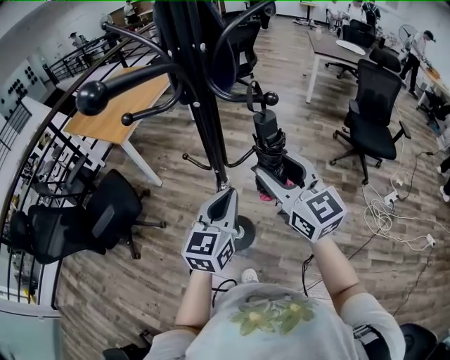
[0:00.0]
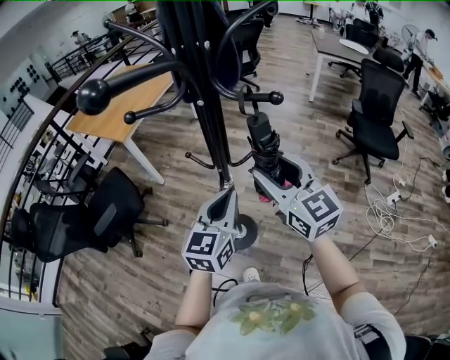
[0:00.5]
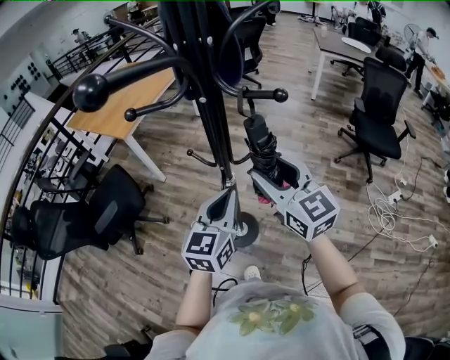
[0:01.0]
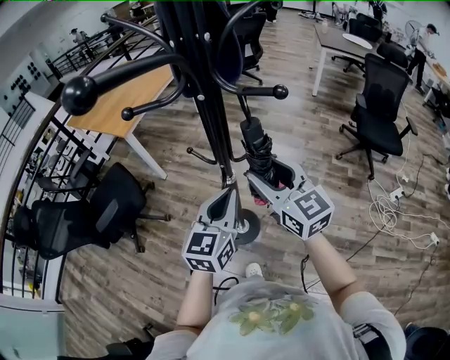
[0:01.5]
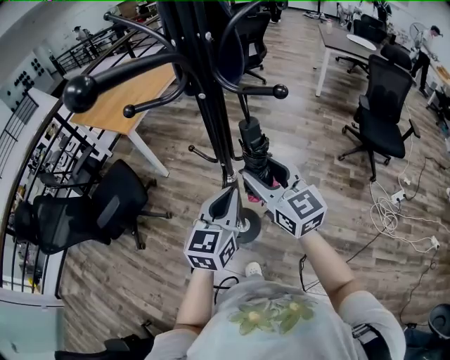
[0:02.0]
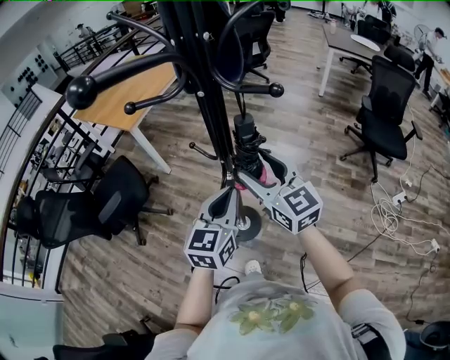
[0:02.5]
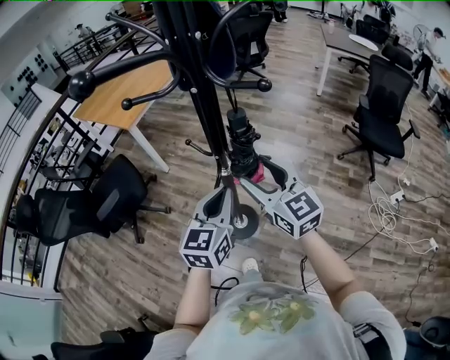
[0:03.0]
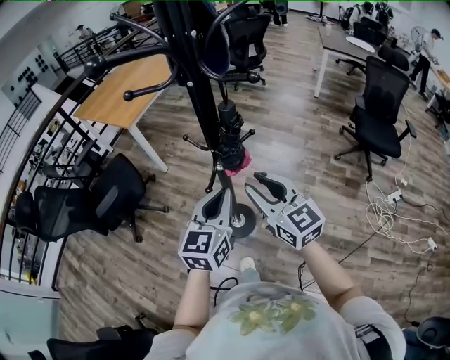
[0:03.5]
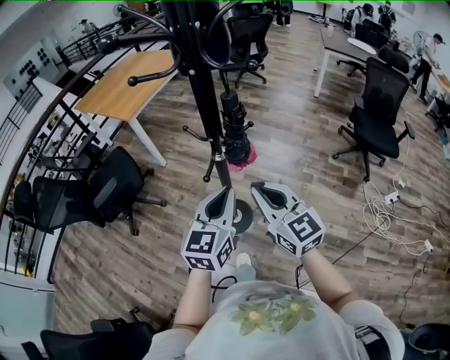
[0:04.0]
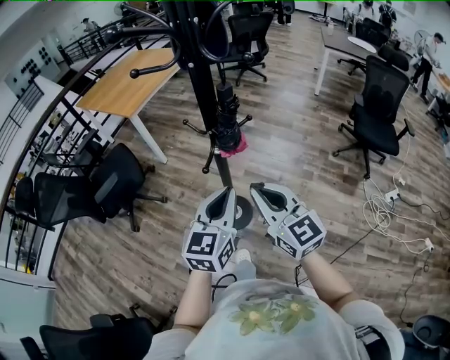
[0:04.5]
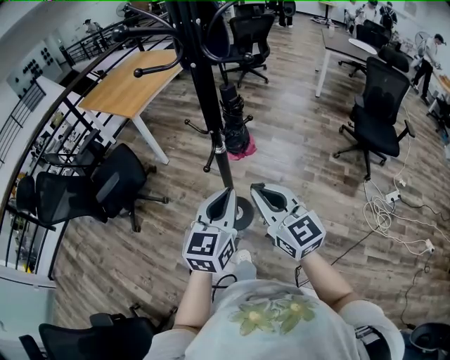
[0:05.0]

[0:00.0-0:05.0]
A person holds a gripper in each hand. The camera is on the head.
0:00.0 to 0:02.5: The right gripper is displaced downward by some 5 cm.
0:02.5 to 0:05.0: Both grippers move backward, some 15 cm. The right gripper closes its fingers.

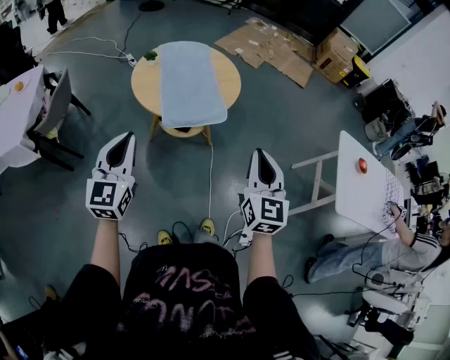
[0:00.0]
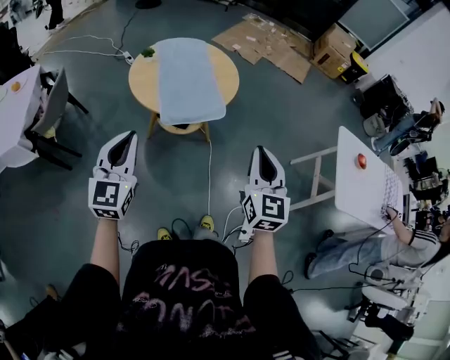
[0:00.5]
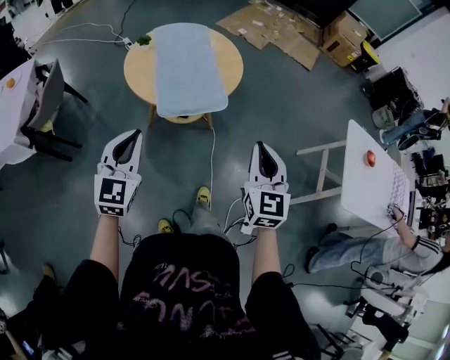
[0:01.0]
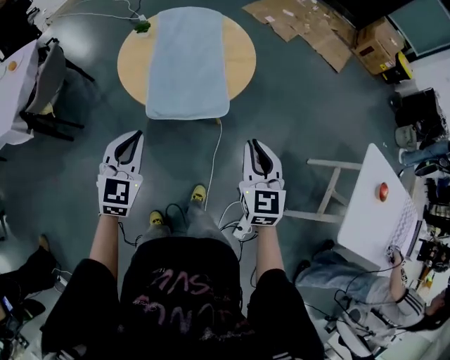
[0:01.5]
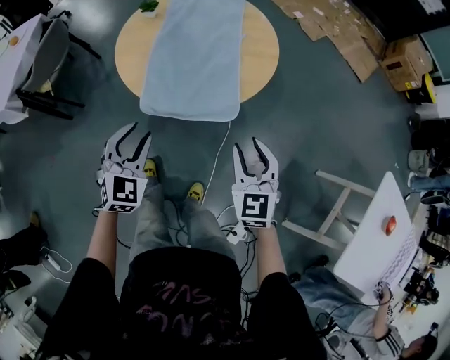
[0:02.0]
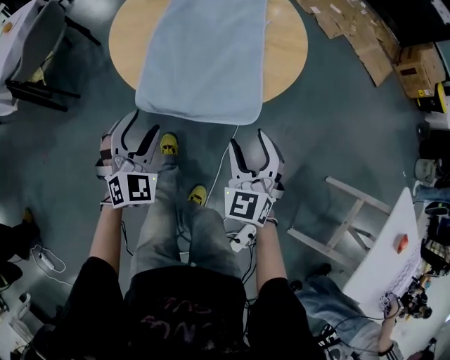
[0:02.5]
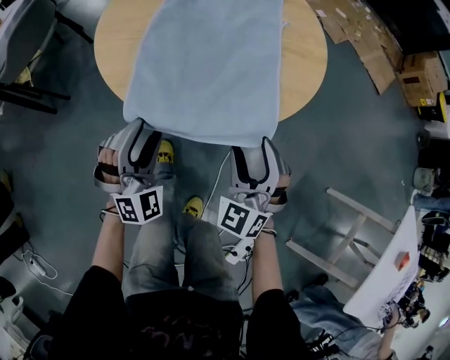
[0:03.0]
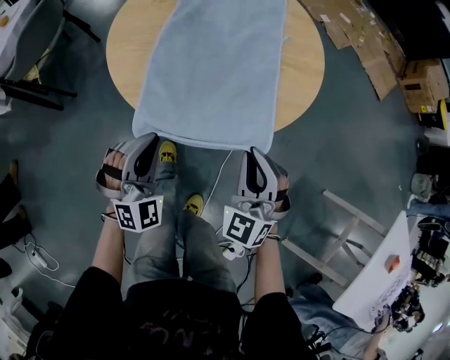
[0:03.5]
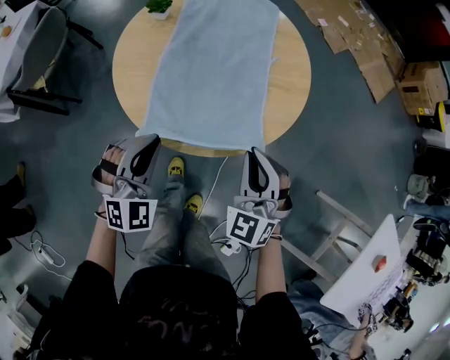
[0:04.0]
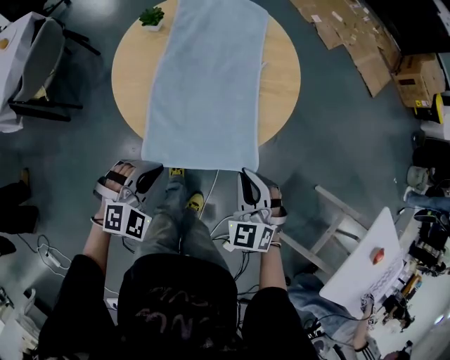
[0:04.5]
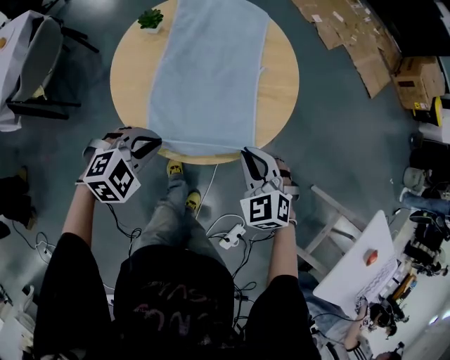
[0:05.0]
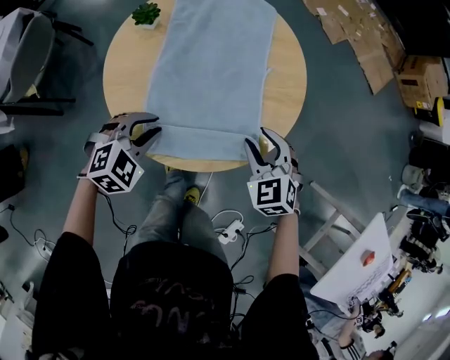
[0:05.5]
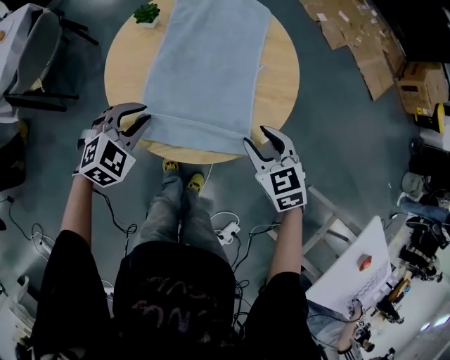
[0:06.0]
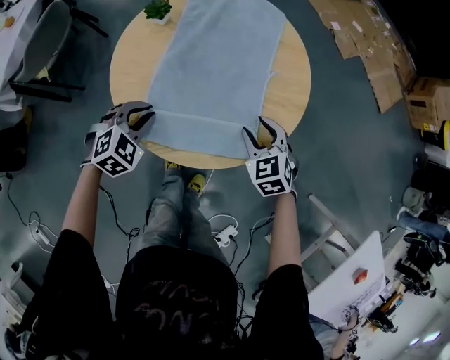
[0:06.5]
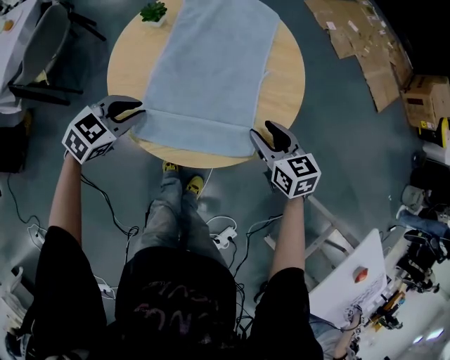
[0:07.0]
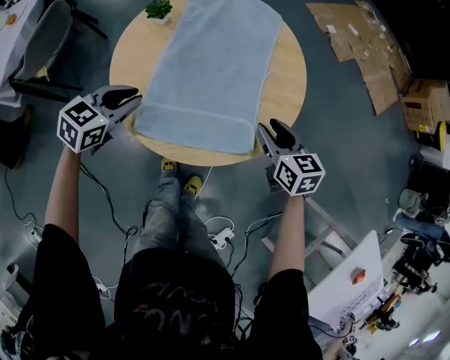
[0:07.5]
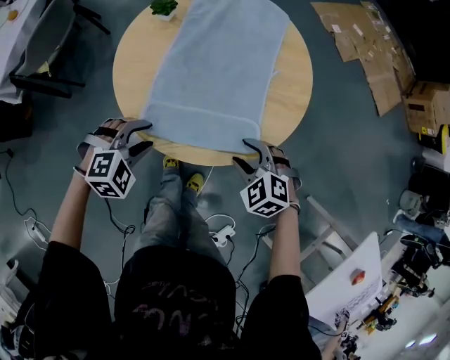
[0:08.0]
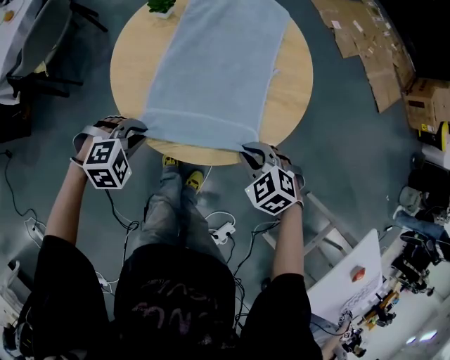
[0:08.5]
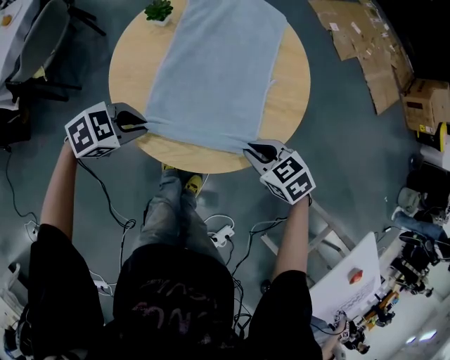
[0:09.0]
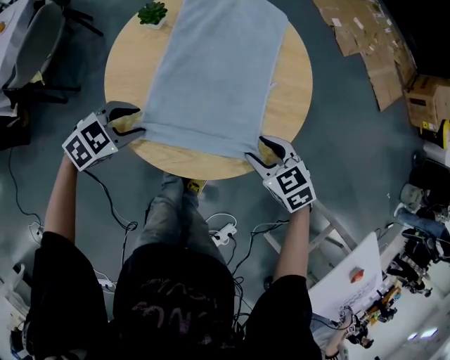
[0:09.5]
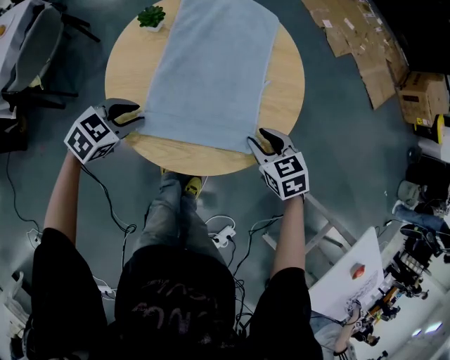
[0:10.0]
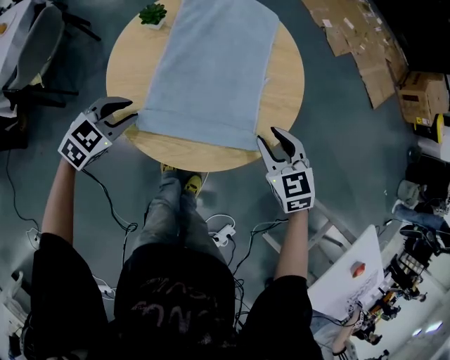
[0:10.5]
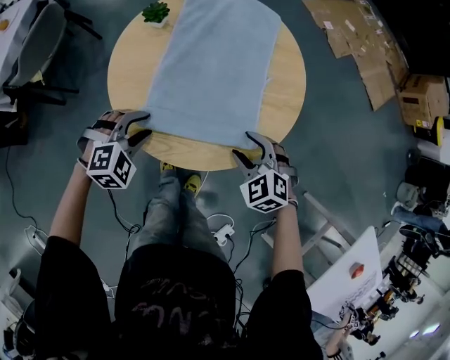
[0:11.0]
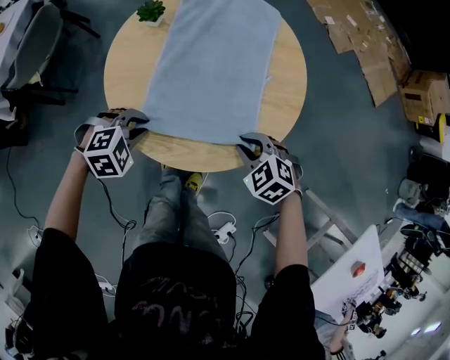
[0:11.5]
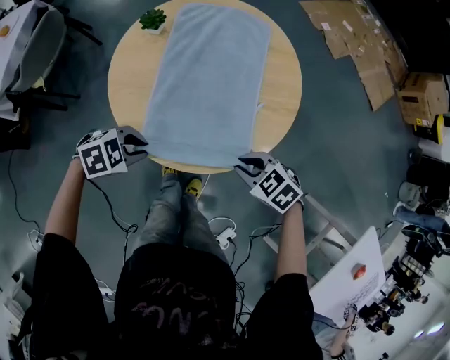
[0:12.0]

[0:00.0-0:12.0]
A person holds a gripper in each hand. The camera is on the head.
0:00.0 to 0:02.0: The left gripper is displaced downward, forward and to the right by some 30 cm, rotates some 40 degrees, and opens; the right gripper shifts roughly 30 cm downward and forward, swivels roughly 30 degrees, and opens up.
0:02.0 to 0:04.0: The right gripper travels forward and to the left by roughly 15 cm, goes downward and returns, approximately 15 cm each way, swivels about 30 degrees, and closes; the left gripper travels forward by approximately 10 cm, moves about 15 cm downward and comes back, changes its angle by roughly 20 degrees, and closes its fingers.
0:04.0 to 0:06.0: Both grippers move forward, approximately 10 cm. The right gripper turns by about 40 degrees, and opens; the left gripper changes its angle by approximately 30 degrees.
0:06.0 to 0:08.0: The left gripper travels backward by about 5 cm, while the right gripper travels downward and backward by about 10 cm, and turns by about 30 degrees.
0:08.0 to 0:10.0: The left gripper ends up roughly 10 cm from where it was, and changes its angle by approximately 40 degrees; the right gripper changes place by about 10 cm, turns by approximately 40 degrees, and closes, then reopens.
0:10.0 to 0:12.0: The left gripper ends up approximately 10 cm from where it was, and changes its angle by approximately 30 degrees. The right gripper goes upward and returns, approximately 5 cm each way, and rotates about 30 degrees.

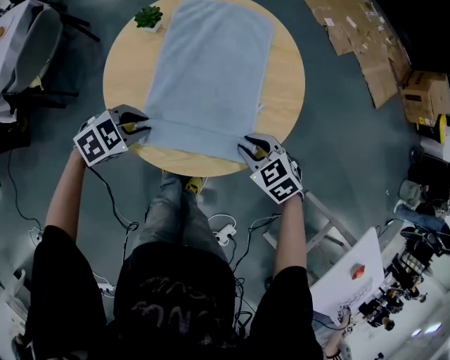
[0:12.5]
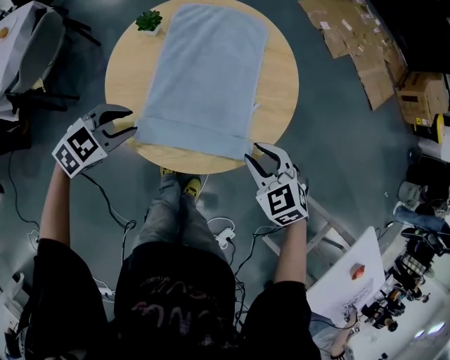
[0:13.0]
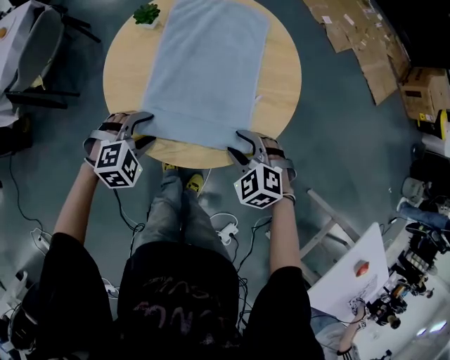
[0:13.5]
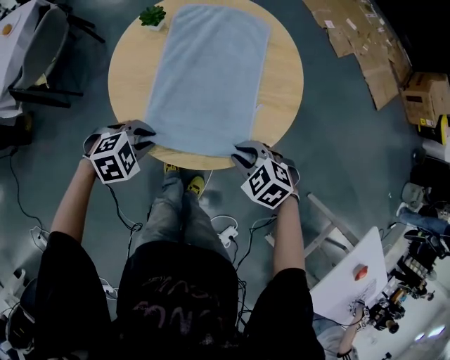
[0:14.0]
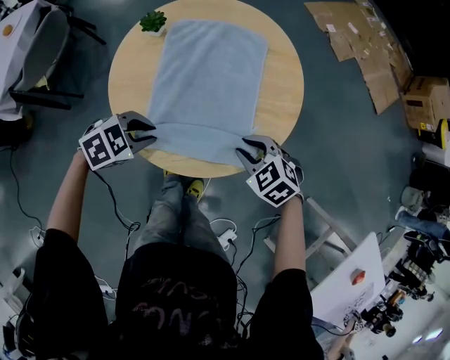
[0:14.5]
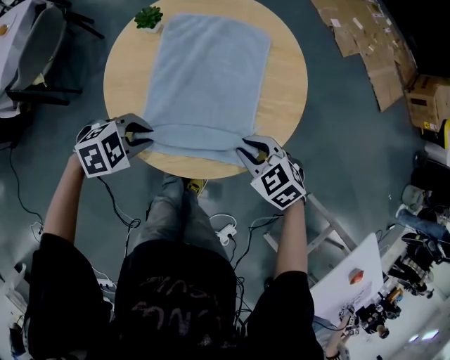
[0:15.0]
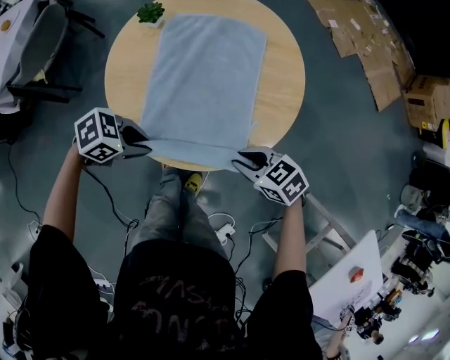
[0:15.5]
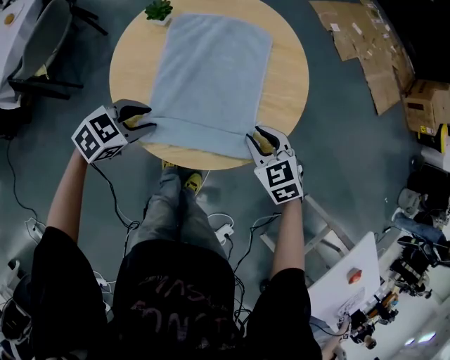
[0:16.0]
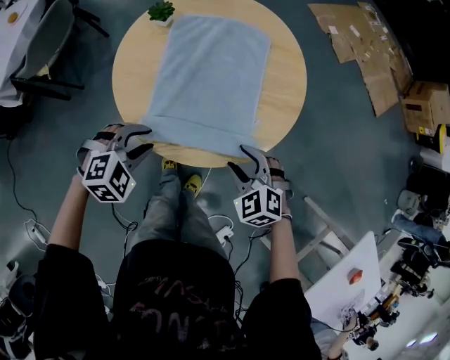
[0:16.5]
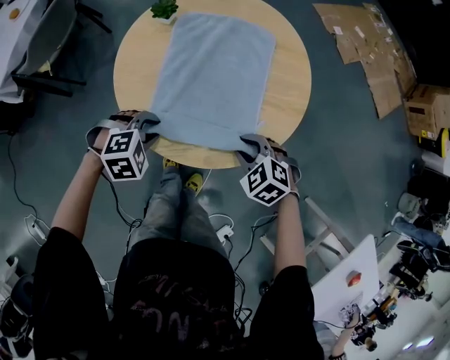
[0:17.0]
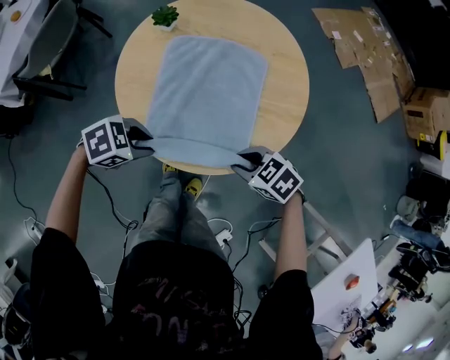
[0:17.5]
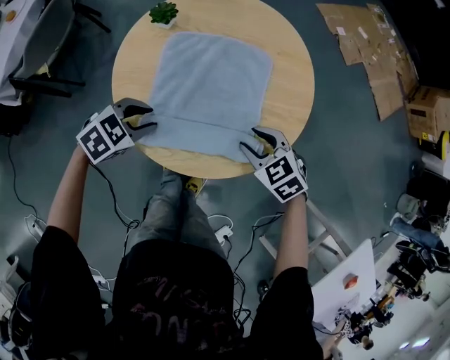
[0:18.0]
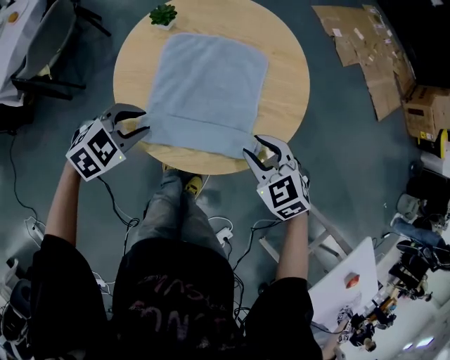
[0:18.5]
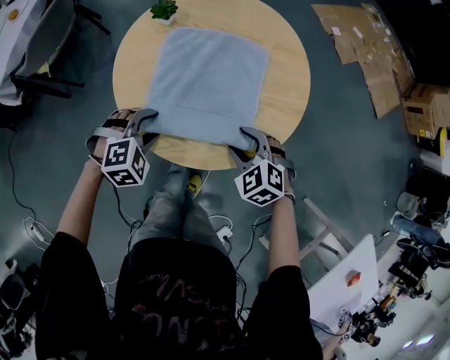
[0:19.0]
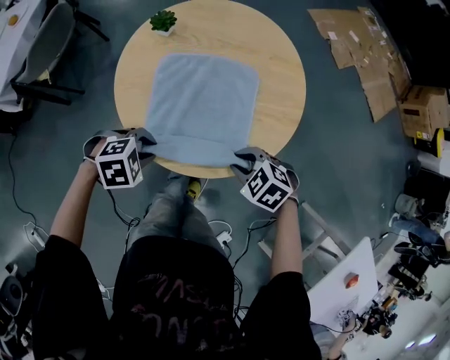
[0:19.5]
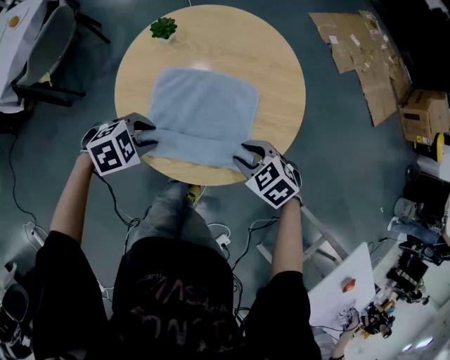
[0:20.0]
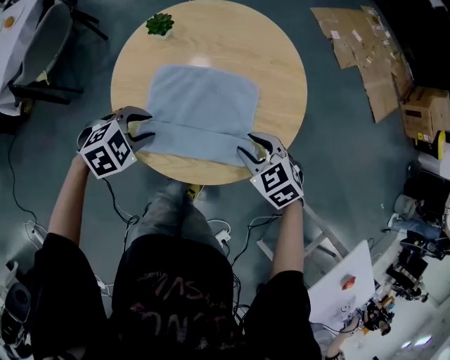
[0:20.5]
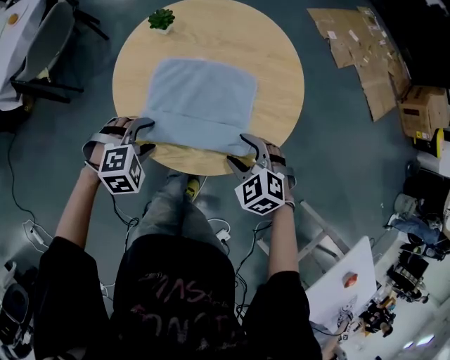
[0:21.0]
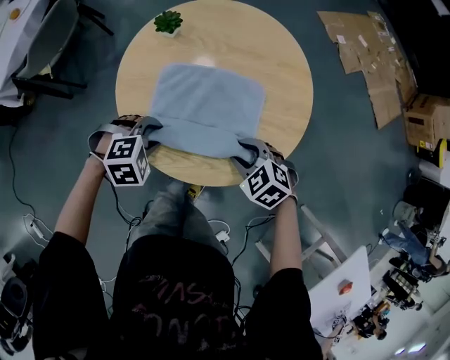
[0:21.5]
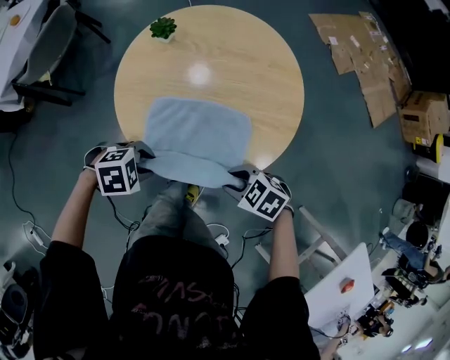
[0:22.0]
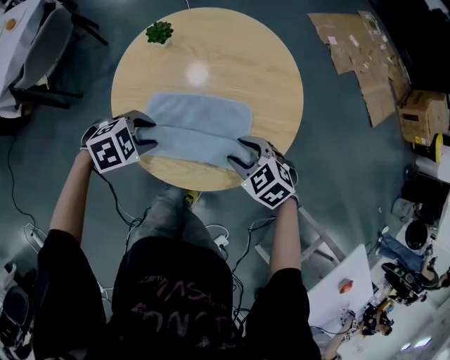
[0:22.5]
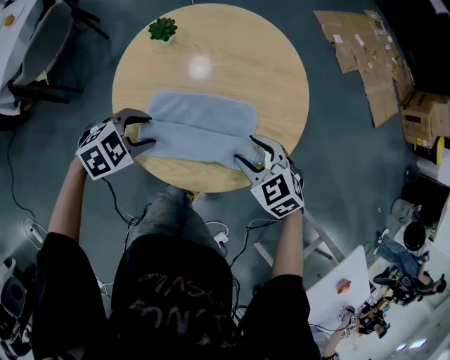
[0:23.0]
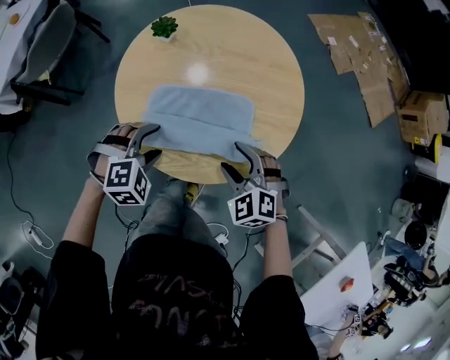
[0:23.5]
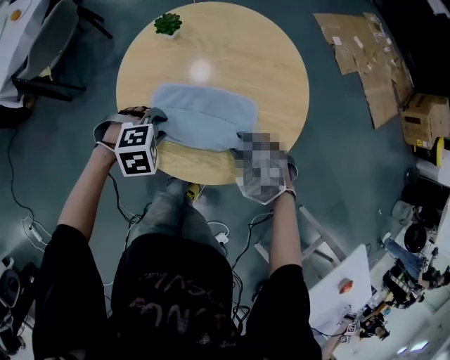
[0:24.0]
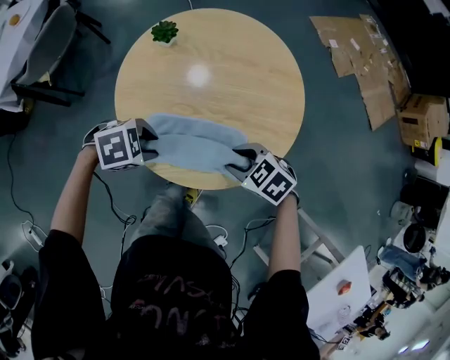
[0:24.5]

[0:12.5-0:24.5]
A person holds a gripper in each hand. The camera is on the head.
0:12.5 to 0:14.5: The left gripper opens and closes again.
0:14.5 to 0:16.5: The right gripper changes place by about 5 cm, and opens its fingers, while the left gripper moves some 5 cm, and changes its angle by roughly 30 degrees.
0:16.5 to 0:18.5: The right gripper moves some 10 cm. Meanwhile the left gripper shifts by approximately 5 cm.
